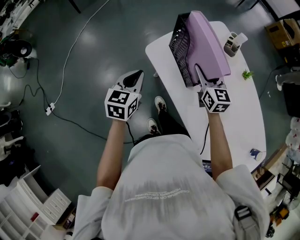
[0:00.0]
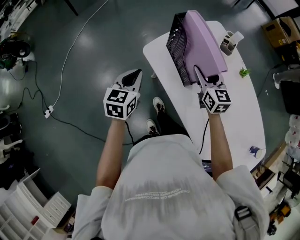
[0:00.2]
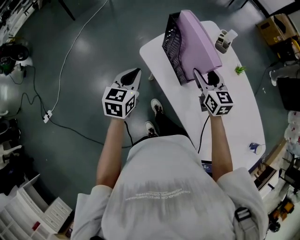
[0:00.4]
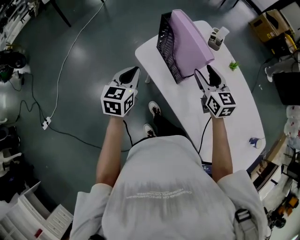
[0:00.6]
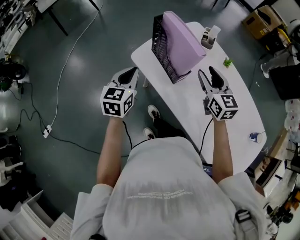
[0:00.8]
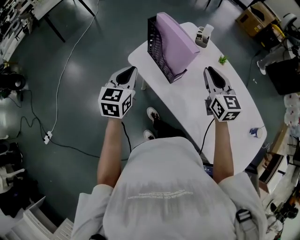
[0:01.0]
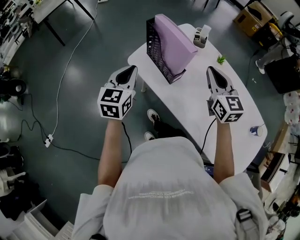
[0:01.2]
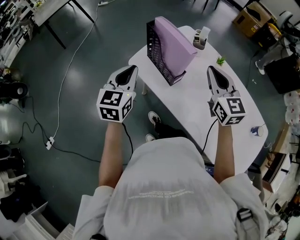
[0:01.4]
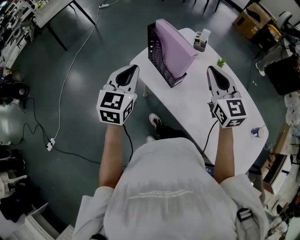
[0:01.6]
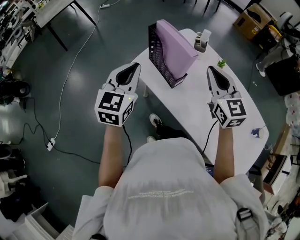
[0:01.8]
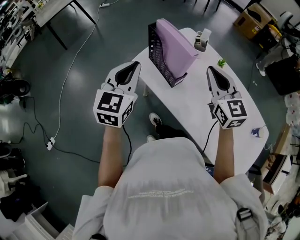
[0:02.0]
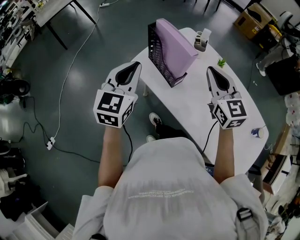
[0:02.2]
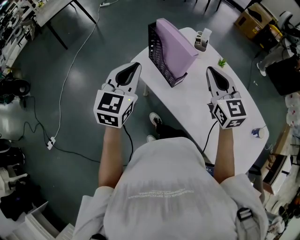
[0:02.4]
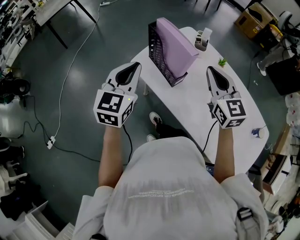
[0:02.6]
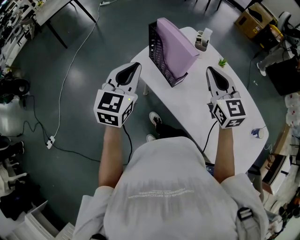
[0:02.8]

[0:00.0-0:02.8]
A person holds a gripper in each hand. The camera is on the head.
0:00.0 to 0:01.4: The right gripper goes about 20 cm upward, backward and to the right, and closes its fingers, while the left gripper heads upward, covering some 10 cm, and swivels approximately 20 degrees.
0:01.4 to 0:02.8: The grippers stay close to where they were, moving slightly.

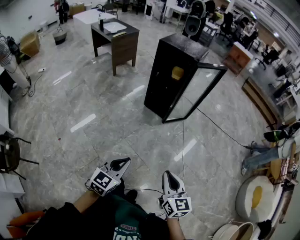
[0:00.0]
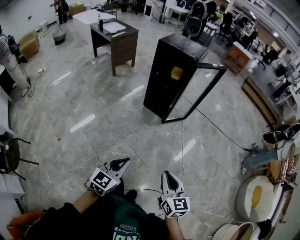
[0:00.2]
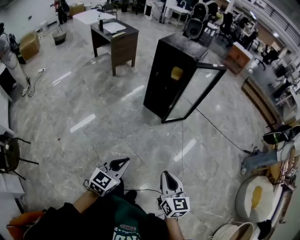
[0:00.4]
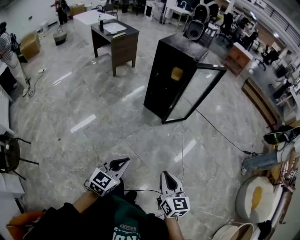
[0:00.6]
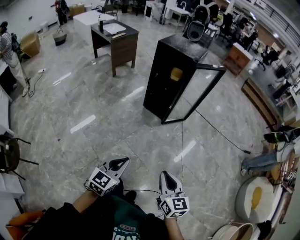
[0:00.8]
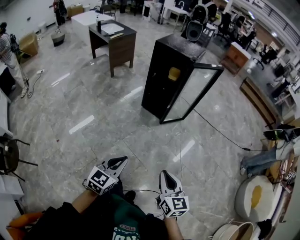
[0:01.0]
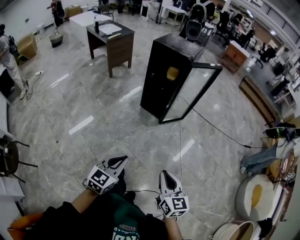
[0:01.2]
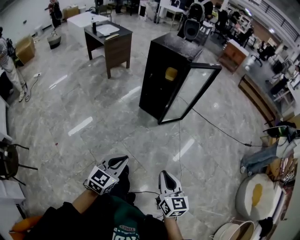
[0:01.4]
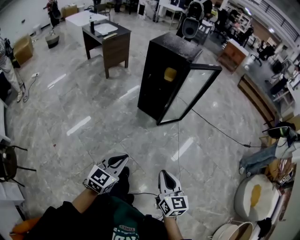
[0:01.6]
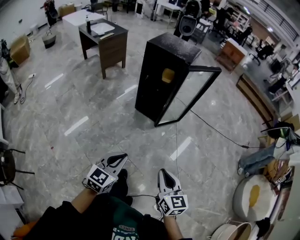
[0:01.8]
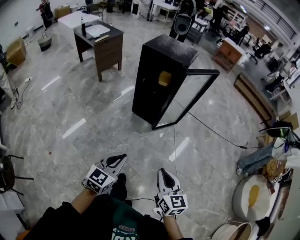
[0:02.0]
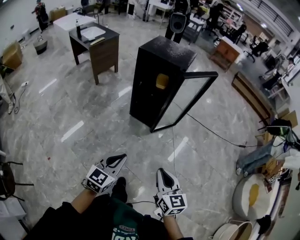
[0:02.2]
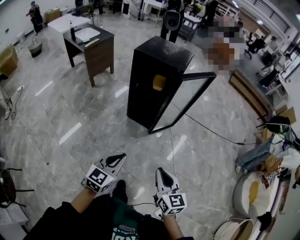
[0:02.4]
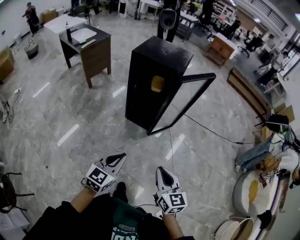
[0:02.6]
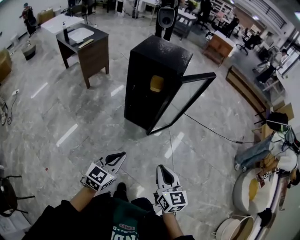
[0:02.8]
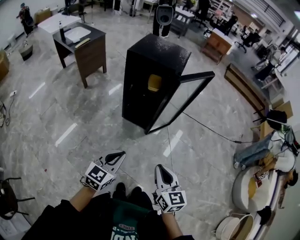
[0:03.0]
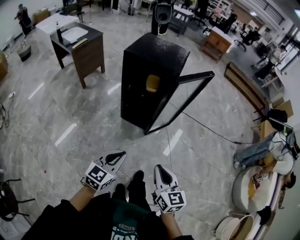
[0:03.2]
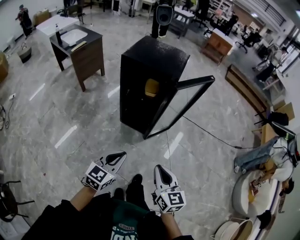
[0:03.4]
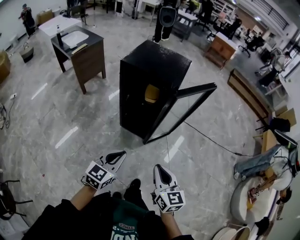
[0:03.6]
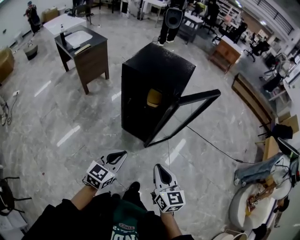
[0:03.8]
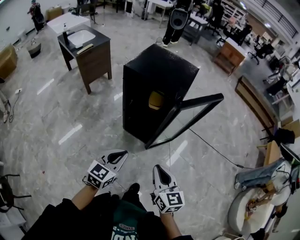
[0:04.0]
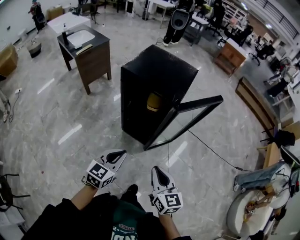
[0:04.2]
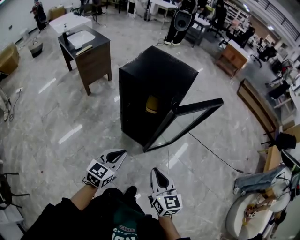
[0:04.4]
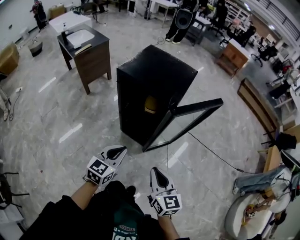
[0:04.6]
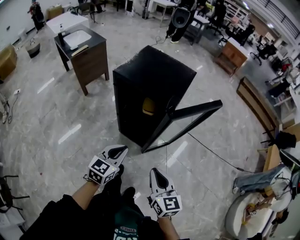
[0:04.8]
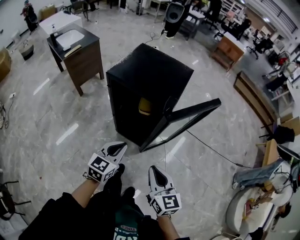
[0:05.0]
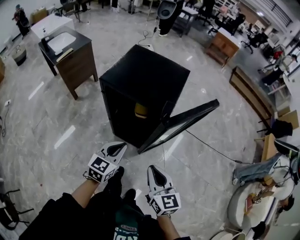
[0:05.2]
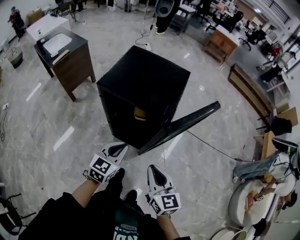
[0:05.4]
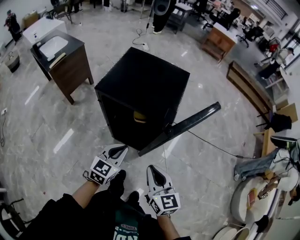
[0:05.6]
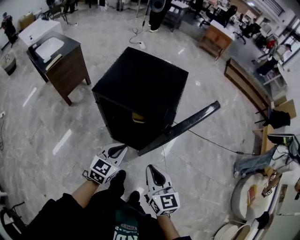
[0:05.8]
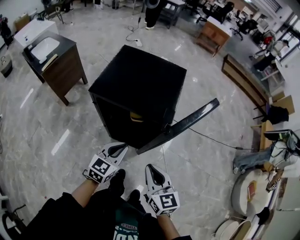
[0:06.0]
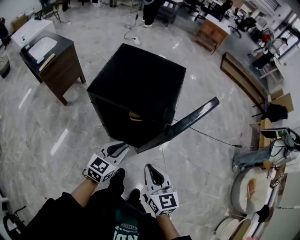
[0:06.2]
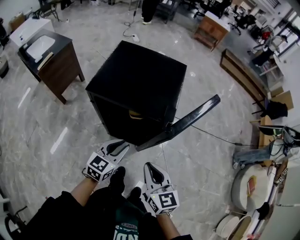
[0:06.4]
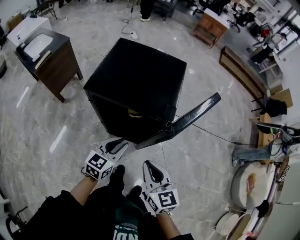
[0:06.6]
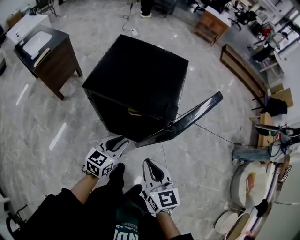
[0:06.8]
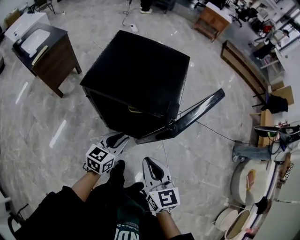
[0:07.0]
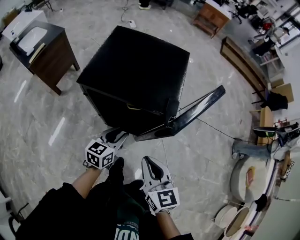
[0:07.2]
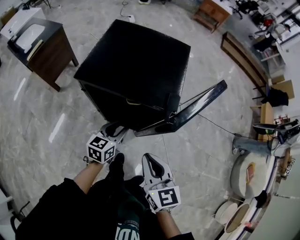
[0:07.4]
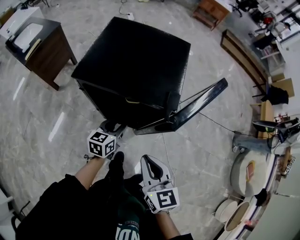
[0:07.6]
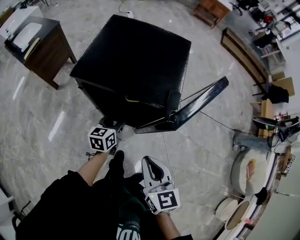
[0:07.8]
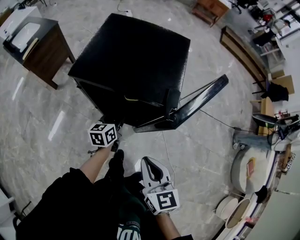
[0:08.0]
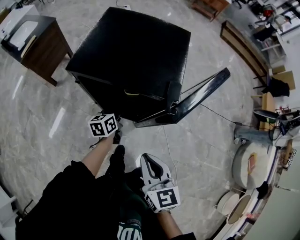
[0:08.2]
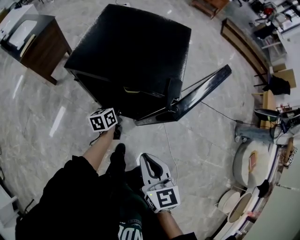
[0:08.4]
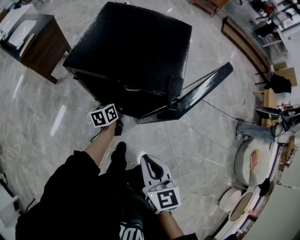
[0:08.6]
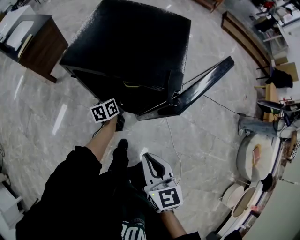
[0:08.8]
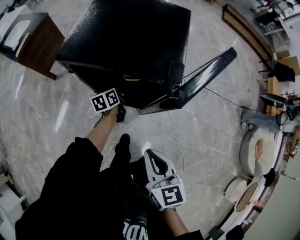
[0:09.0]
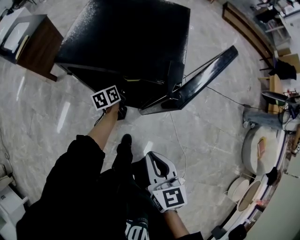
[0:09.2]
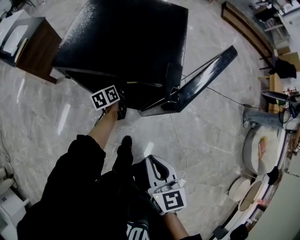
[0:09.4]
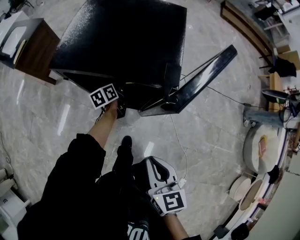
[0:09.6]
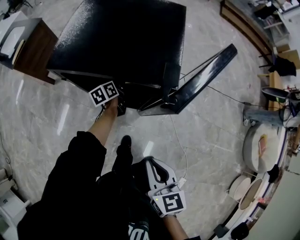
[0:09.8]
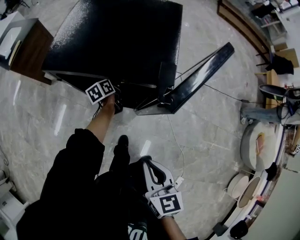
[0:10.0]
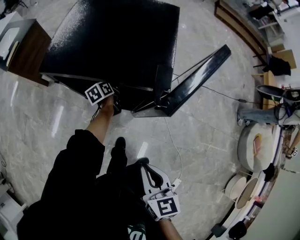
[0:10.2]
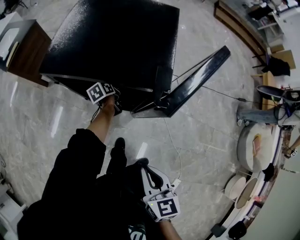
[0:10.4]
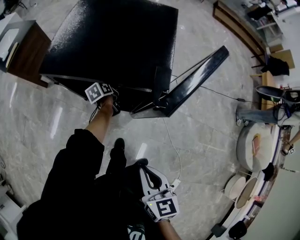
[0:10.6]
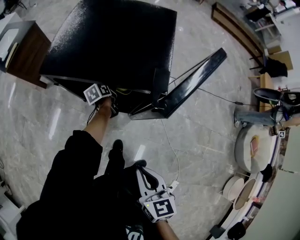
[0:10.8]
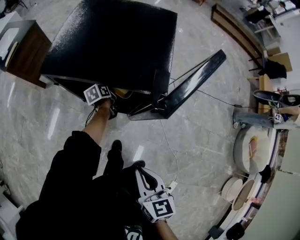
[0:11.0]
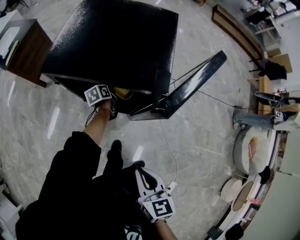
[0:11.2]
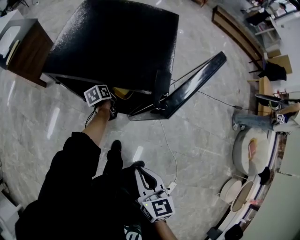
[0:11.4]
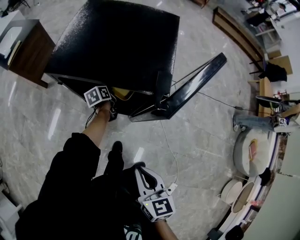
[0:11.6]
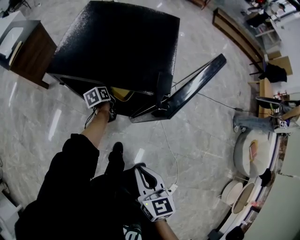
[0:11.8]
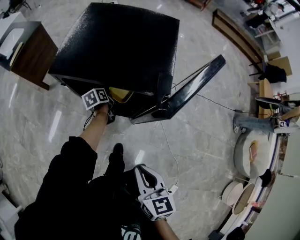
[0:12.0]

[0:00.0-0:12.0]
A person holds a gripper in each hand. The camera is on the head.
0:00.0 to 0:01.6: Both grippers travel together forward, about 5 cm.
0:01.6 to 0:03.0: Both grippers move forward, about 25 cm.
0:03.0 to 0:04.4: The two grippers go roughly 20 cm forward.
0:04.4 to 0:06.0: Both grippers move forward, about 20 cm.
0:06.0 to 0:07.6: The left gripper heads downward and forward, covering approximately 15 cm, turns by roughly 20 degrees, and opens up.
0:07.6 to 0:09.0: The right gripper moves roughly 5 cm. Meanwhile the left gripper heads downward and forward, covering some 15 cm, and turns by roughly 30 degrees.
0:09.0 to 0:10.4: The left gripper shifts some 5 cm downward.
0:10.4 to 0:12.0: The left gripper closes up.

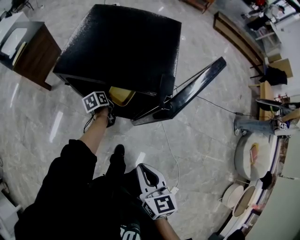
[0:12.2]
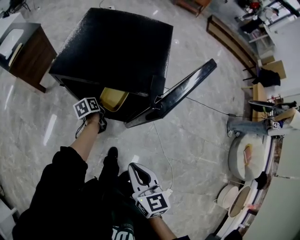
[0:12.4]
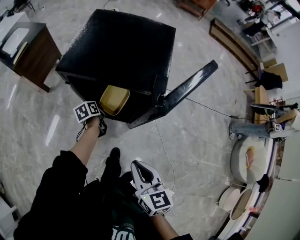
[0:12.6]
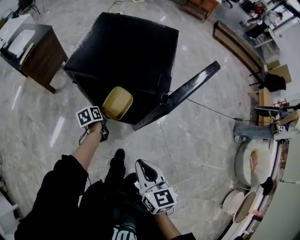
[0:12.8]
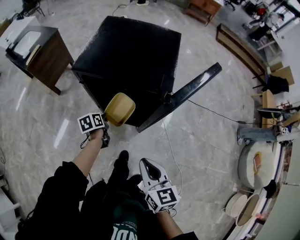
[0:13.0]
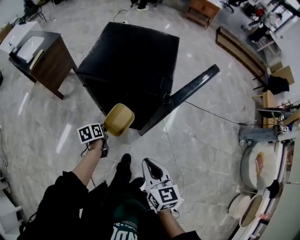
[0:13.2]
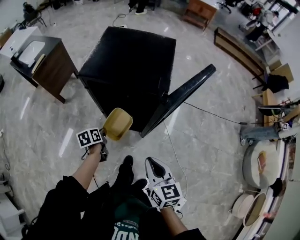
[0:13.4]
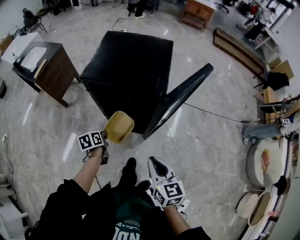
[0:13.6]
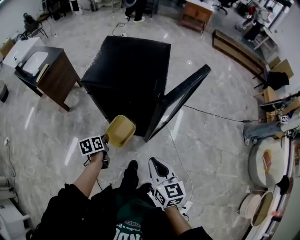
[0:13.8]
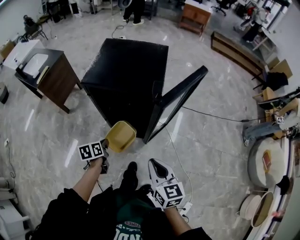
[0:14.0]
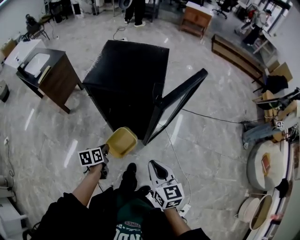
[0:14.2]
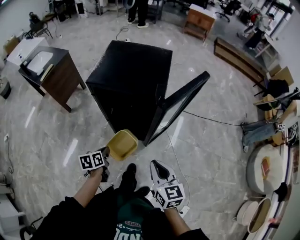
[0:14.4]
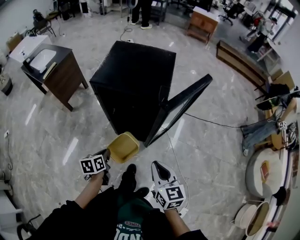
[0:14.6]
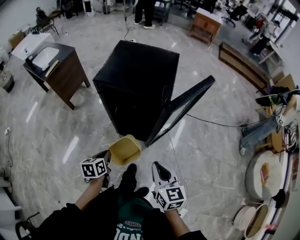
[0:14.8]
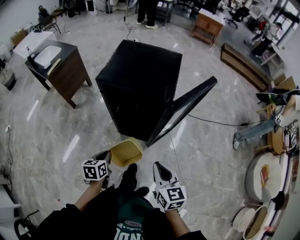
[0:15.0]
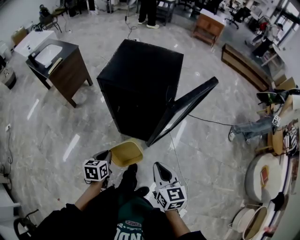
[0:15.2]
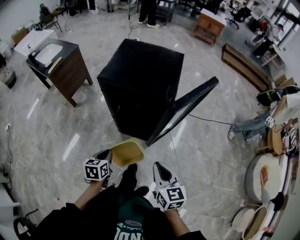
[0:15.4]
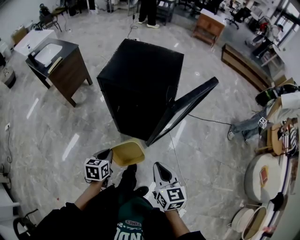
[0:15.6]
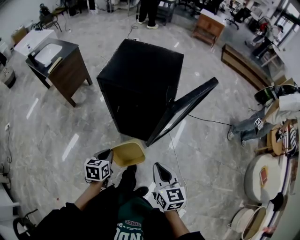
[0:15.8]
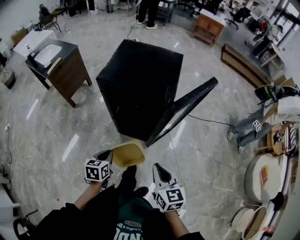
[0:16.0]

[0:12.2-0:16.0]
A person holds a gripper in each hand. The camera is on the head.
0:12.2 to 0:13.4: The left gripper goes approximately 20 cm backward, upward and to the left.
0:13.4 to 0:14.8: The left gripper travels backward and upward by about 15 cm.
0:14.8 to 0:16.0: The grippers stay close to where they were, moving slightly.

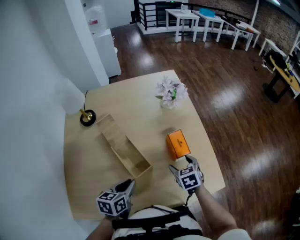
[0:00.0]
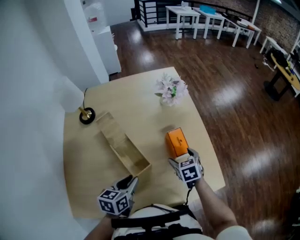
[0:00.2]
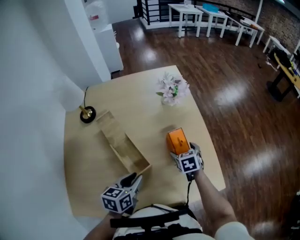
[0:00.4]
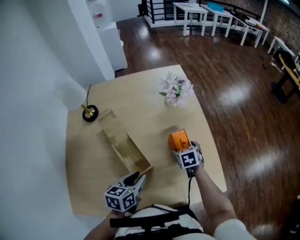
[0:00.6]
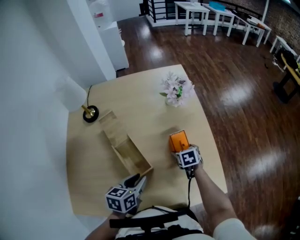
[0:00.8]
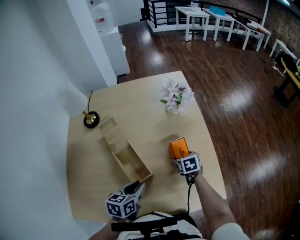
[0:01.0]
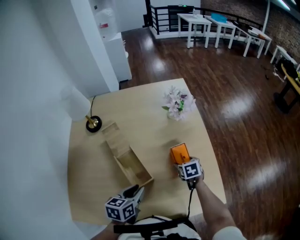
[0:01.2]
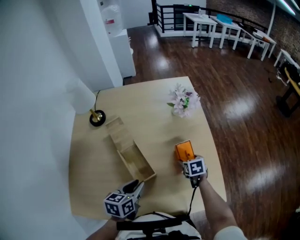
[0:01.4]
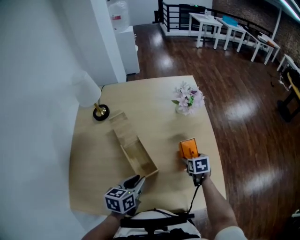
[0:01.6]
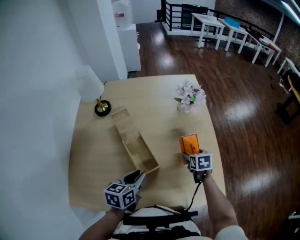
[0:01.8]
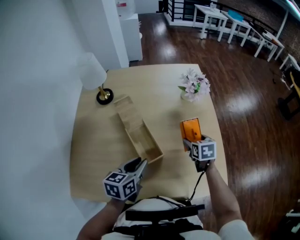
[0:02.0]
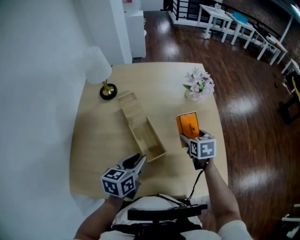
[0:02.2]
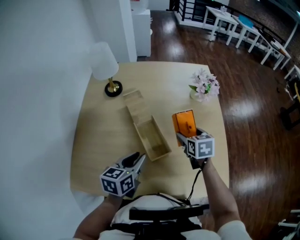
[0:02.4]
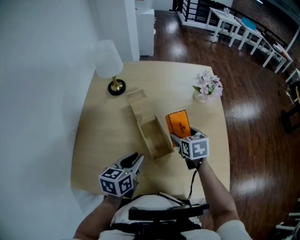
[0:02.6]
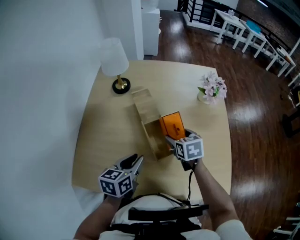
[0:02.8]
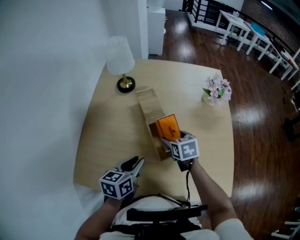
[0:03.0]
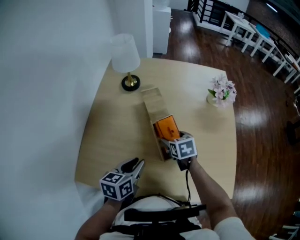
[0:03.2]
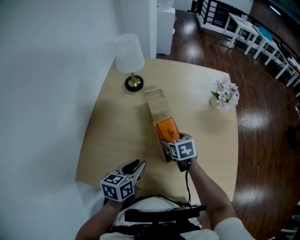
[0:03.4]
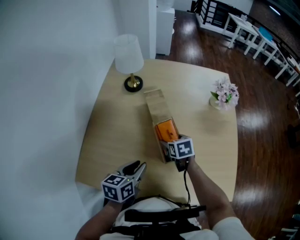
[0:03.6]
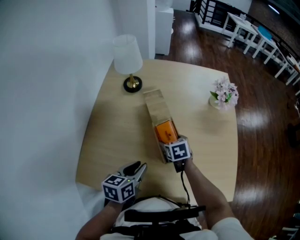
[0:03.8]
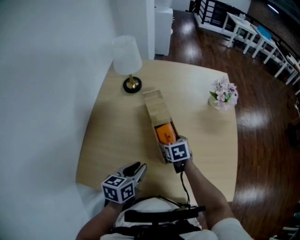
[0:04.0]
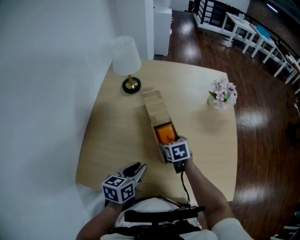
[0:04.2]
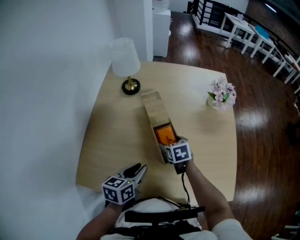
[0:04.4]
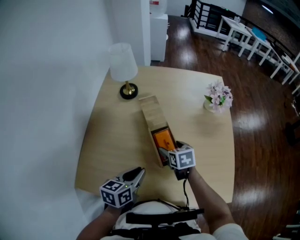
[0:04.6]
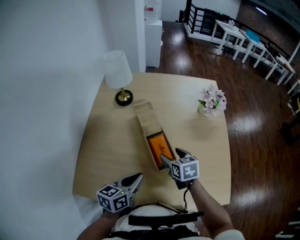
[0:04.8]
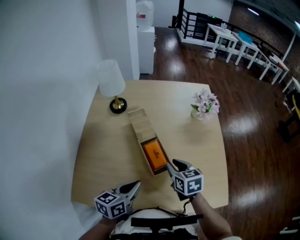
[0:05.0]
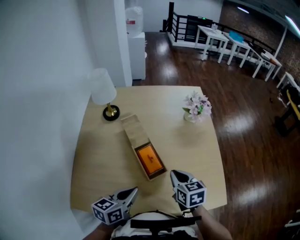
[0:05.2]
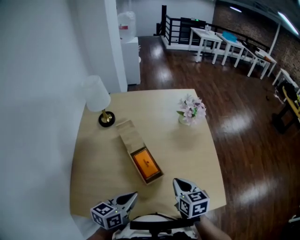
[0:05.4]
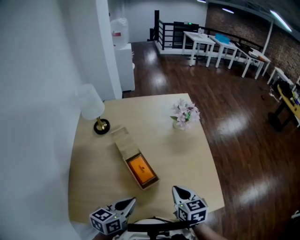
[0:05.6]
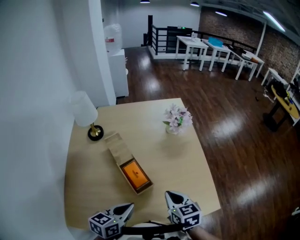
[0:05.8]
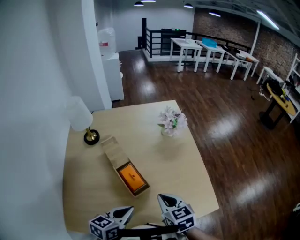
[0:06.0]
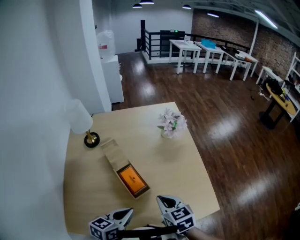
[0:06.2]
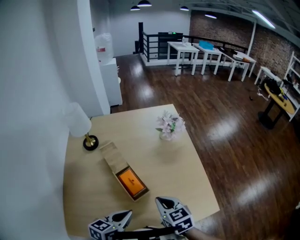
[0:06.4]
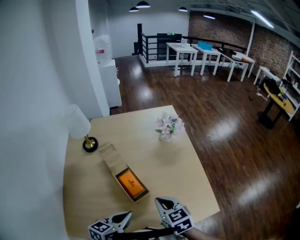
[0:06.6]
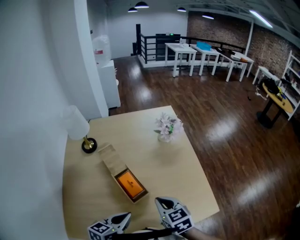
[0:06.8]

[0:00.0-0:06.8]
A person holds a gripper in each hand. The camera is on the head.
0:00.0 to 0:01.4: The right gripper goes approximately 10 cm forward and downward.
0:01.4 to 0:02.8: The left gripper shifts about 10 cm to the left. Meanwhile the right gripper travels to the left and upward by some 25 cm.
0:02.8 to 0:04.0: The right gripper moves downward and to the left, about 10 cm.
0:04.0 to 0:05.4: The left gripper is displaced to the right and upward by some 10 cm, rotates approximately 20 degrees, and closes. The right gripper shifts approximately 25 cm upward, to the right and backward, turns by about 30 degrees, and closes up.
0:05.4 to 0:06.8: The grippers make only small movements.
